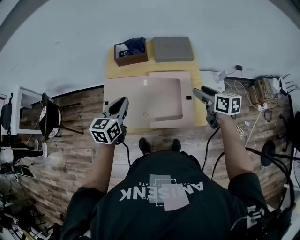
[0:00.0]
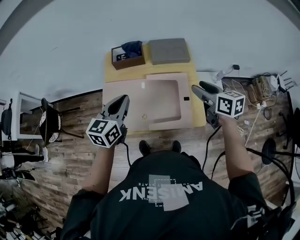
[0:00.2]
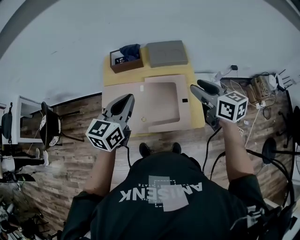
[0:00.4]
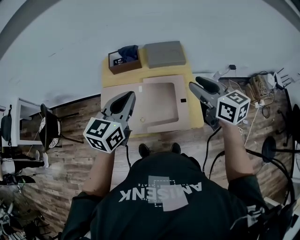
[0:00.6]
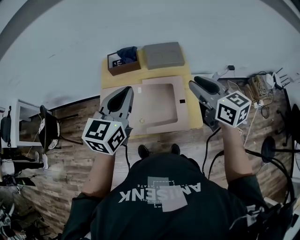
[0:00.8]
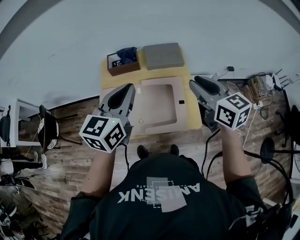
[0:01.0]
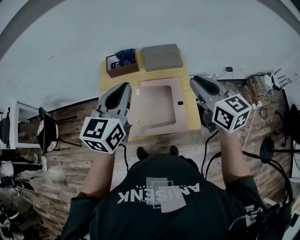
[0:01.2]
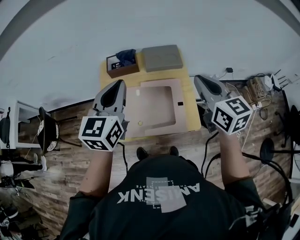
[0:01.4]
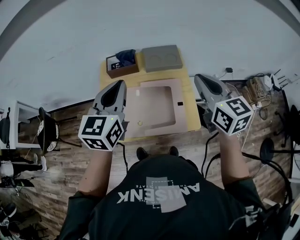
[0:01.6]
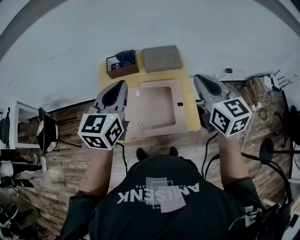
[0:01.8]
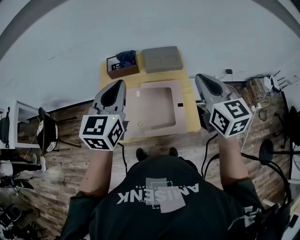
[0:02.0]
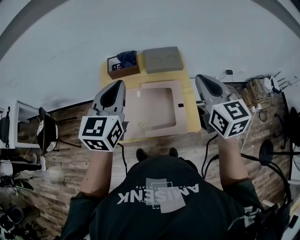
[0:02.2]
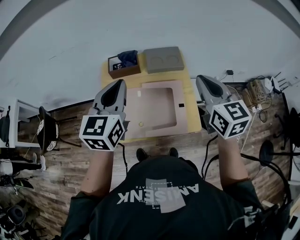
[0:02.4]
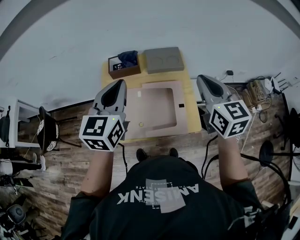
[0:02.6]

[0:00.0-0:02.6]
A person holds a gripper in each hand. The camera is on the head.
0:00.0 to 0:01.2: The right gripper goes some 20 cm upward, changes its angle by about 30 degrees, and closes its fingers, while the left gripper travels upward and to the right by roughly 20 cm.
0:01.2 to 0:02.6: The grippers make only small movements.

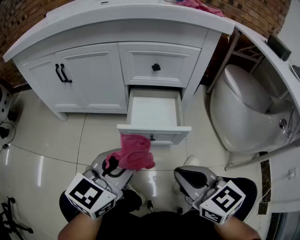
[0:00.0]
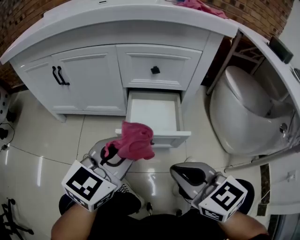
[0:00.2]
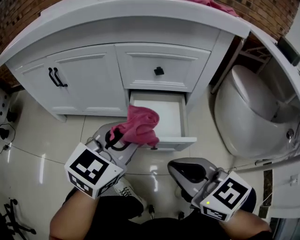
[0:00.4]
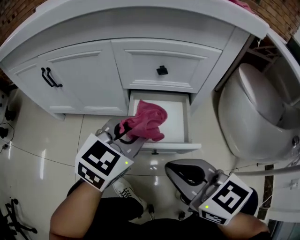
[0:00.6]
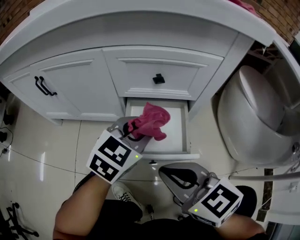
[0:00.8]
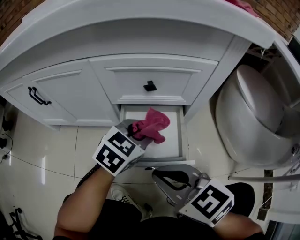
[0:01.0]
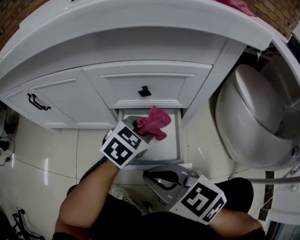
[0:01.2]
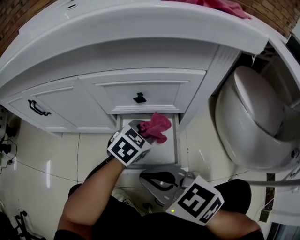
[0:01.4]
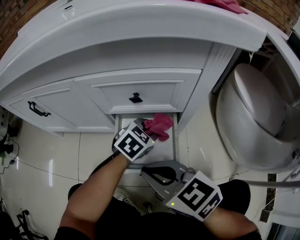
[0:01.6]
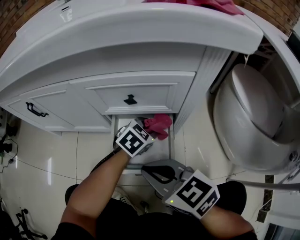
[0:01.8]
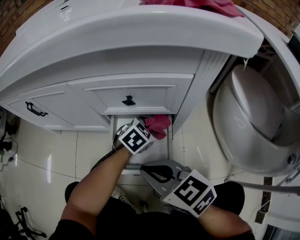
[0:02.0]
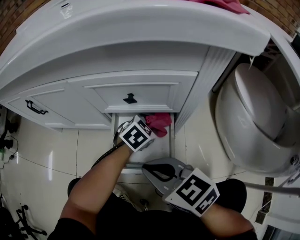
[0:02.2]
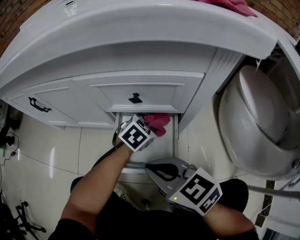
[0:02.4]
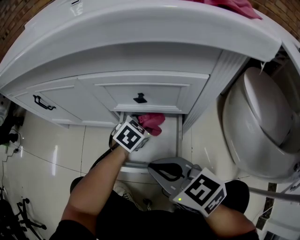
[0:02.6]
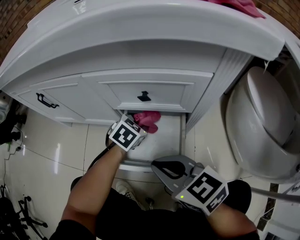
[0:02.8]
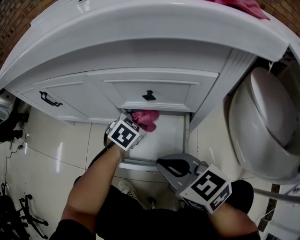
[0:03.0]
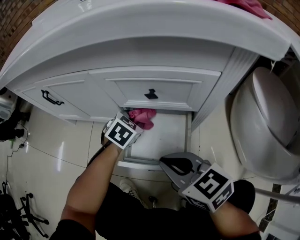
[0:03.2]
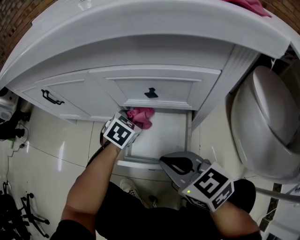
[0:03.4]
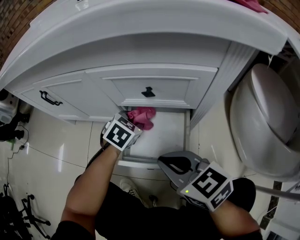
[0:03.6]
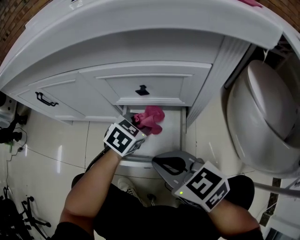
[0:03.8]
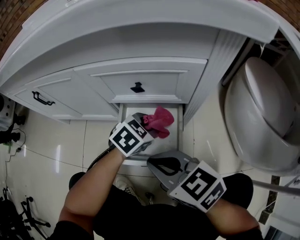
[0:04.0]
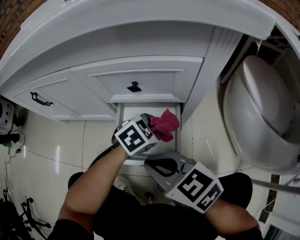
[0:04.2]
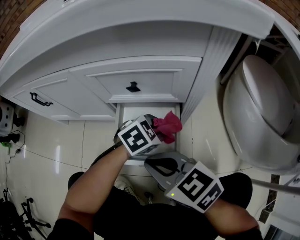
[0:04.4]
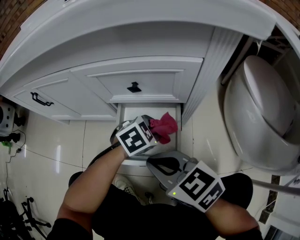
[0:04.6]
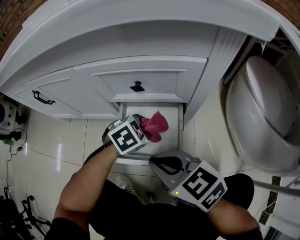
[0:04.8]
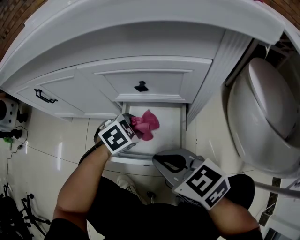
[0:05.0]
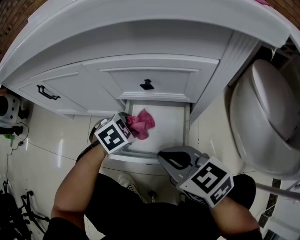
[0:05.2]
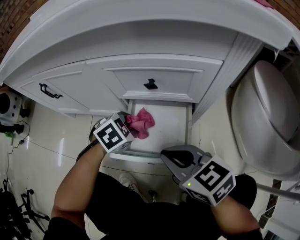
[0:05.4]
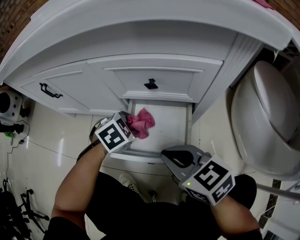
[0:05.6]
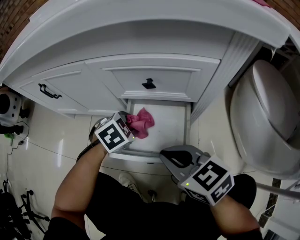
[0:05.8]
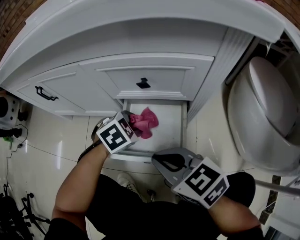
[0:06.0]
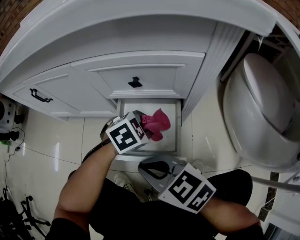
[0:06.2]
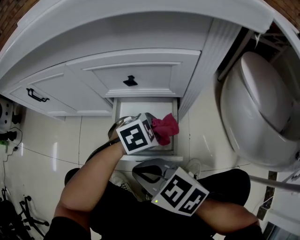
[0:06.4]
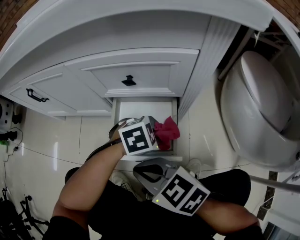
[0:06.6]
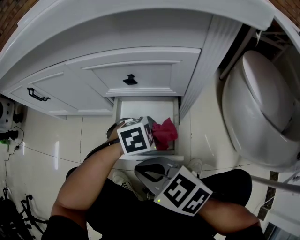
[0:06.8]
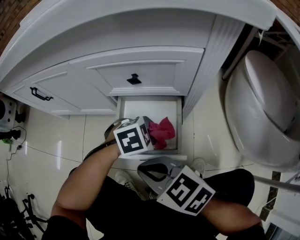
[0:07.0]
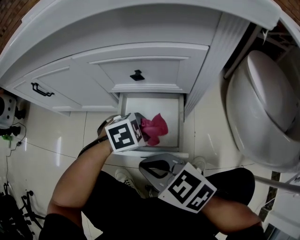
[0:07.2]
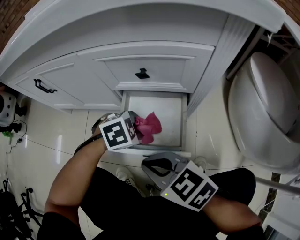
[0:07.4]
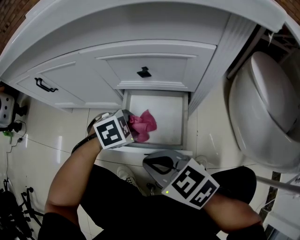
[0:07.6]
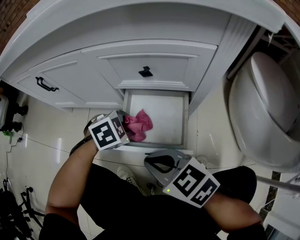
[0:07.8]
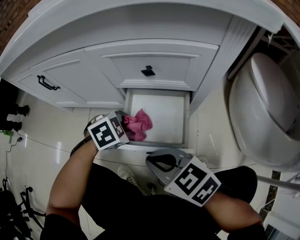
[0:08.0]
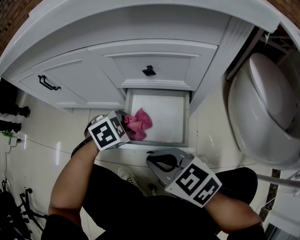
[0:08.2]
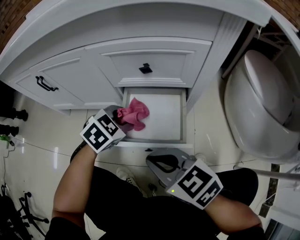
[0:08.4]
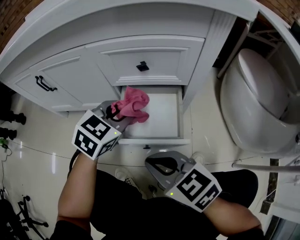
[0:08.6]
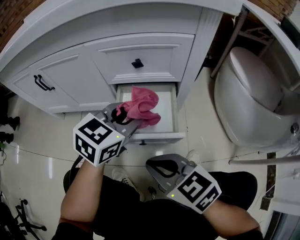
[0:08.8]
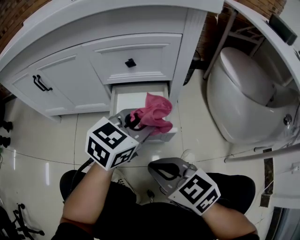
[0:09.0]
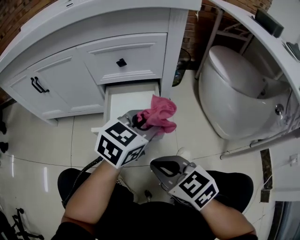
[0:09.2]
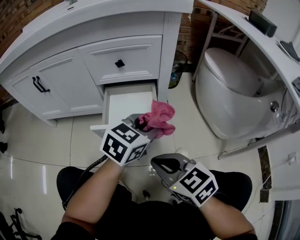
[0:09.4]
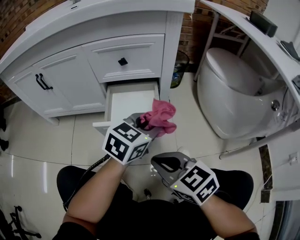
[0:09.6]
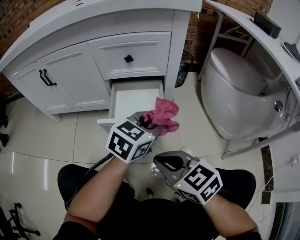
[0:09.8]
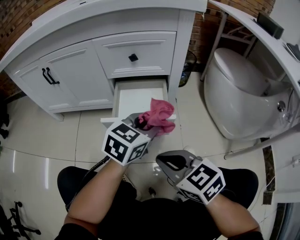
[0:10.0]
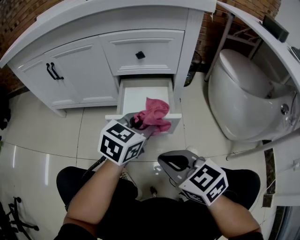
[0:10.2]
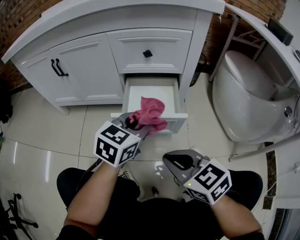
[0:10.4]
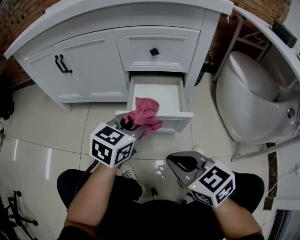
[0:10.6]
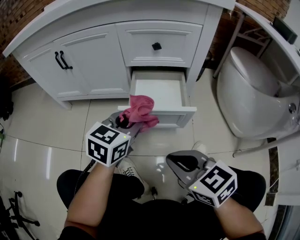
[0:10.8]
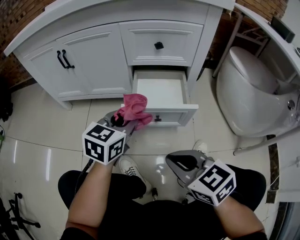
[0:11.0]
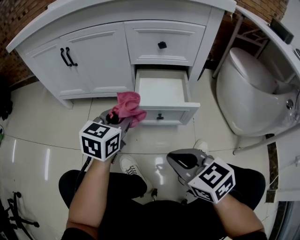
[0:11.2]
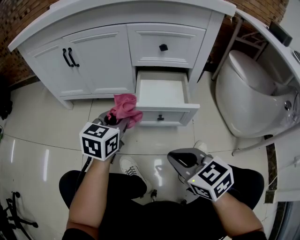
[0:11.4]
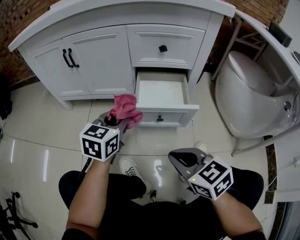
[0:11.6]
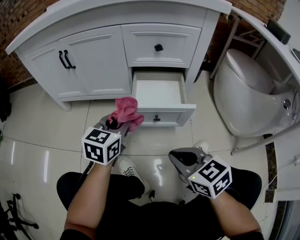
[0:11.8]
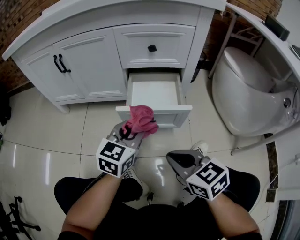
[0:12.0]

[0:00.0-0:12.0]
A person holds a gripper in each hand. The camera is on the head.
0:00.0 to 0:01.6: The left gripper is displaced forward, downward and to the right by some 35 cm, and angles its fingers downward, by approximately 30 degrees. Meanwhile the right gripper moves forward, approximately 20 cm.
0:01.6 to 0:03.0: The left gripper shifts approximately 10 cm to the left.
0:03.0 to 0:04.4: The left gripper ends up some 15 cm from where it was, and changes its angle by approximately 30 degrees.
0:04.4 to 0:06.0: The left gripper moves some 10 cm.
0:06.0 to 0:07.6: The right gripper shifts by roughly 5 cm.
0:07.6 to 0:09.0: The right gripper ends up about 10 cm from where it was. Meanwhile the left gripper travels upward by some 15 cm, and tips its fingers upward by some 40 degrees.
0:09.0 to 0:10.4: The left gripper travels to the left and backward by roughly 10 cm.
0:10.4 to 0:12.0: The left gripper travels to the left by roughly 5 cm.

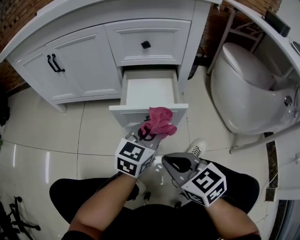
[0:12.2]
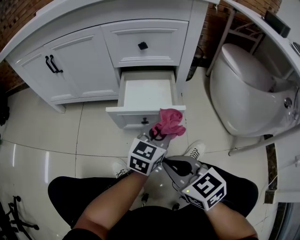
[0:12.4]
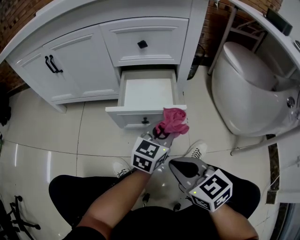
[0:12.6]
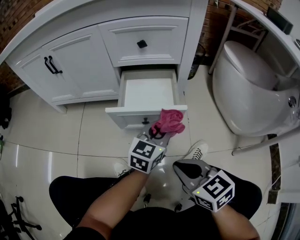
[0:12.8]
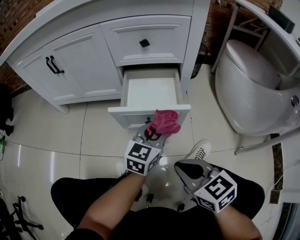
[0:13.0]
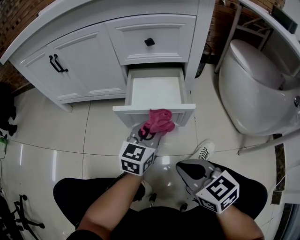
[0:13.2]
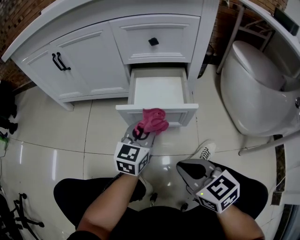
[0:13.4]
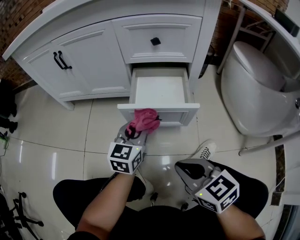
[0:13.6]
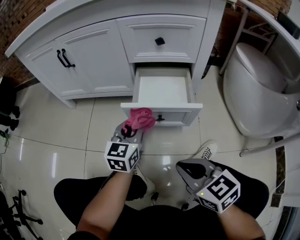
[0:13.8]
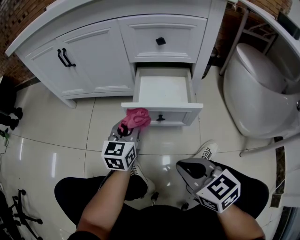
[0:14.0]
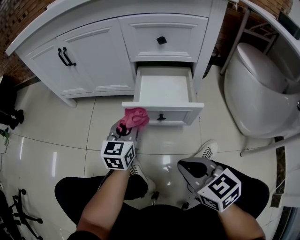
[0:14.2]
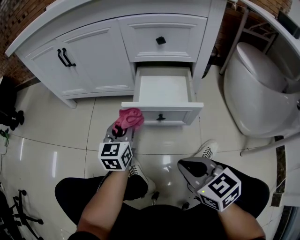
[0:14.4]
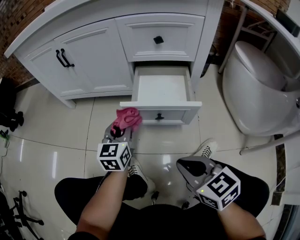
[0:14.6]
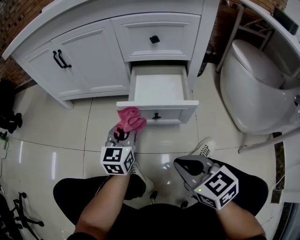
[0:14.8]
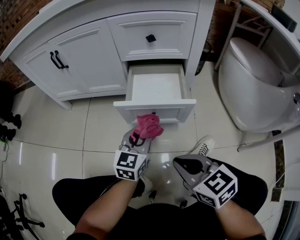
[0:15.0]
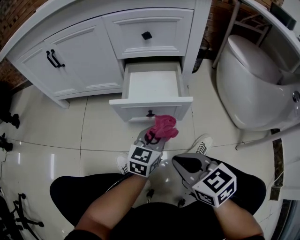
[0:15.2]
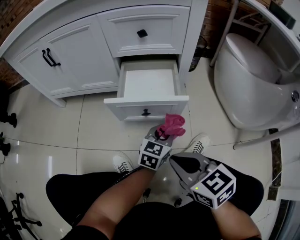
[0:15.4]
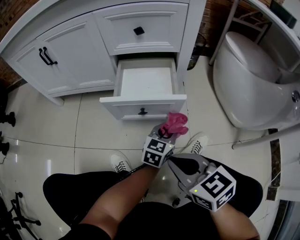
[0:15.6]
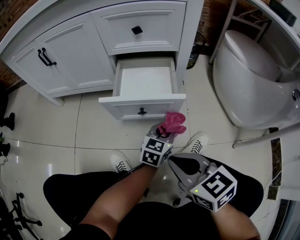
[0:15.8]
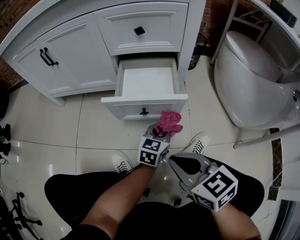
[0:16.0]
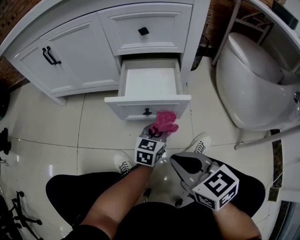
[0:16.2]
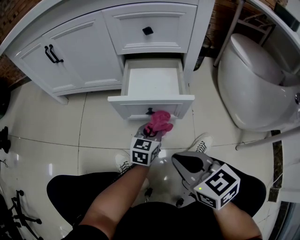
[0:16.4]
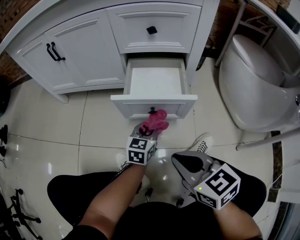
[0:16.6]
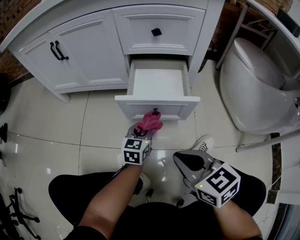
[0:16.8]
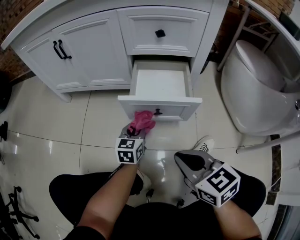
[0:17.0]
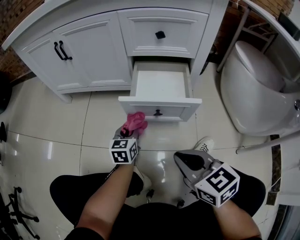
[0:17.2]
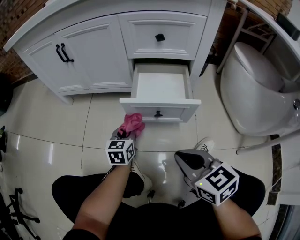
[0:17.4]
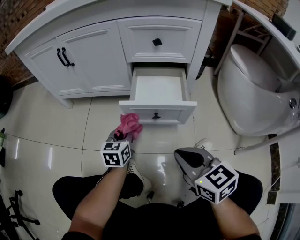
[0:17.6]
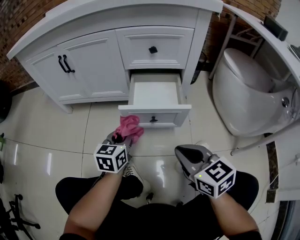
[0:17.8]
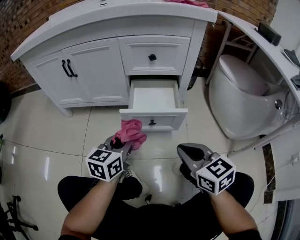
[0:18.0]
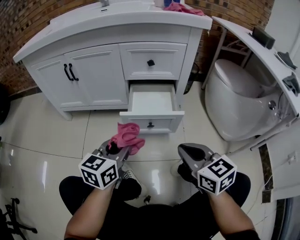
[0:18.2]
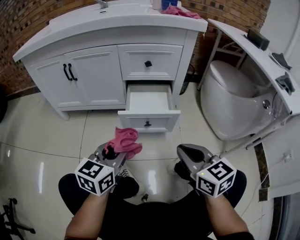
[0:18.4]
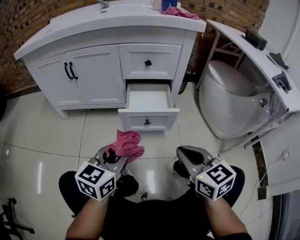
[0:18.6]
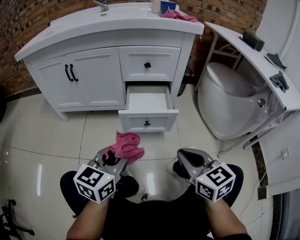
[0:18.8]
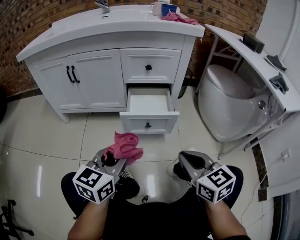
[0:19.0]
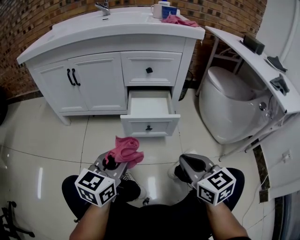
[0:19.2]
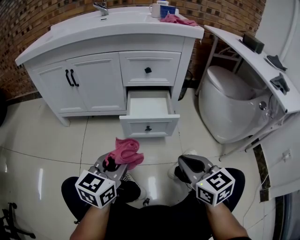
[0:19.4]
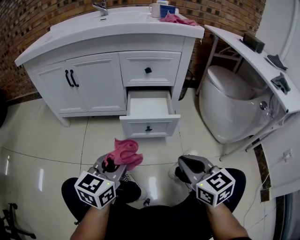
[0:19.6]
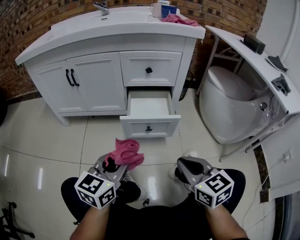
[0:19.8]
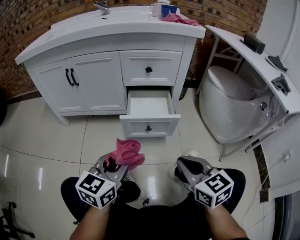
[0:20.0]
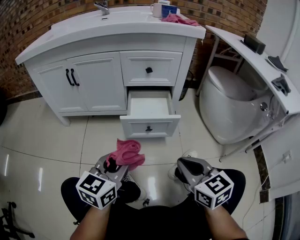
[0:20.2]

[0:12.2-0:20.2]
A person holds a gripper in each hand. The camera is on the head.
0:12.2 to 0:13.8: The left gripper goes some 10 cm to the left, and changes its angle by about 20 degrees.
0:13.8 to 0:15.4: The left gripper goes approximately 20 cm to the right, downward and backward, and rotates approximately 20 degrees.
0:15.4 to 0:17.0: The left gripper goes some 15 cm to the left, and swivels some 20 degrees.
0:17.0 to 0:18.6: The right gripper goes some 10 cm upward, while the left gripper is displaced upward and backward by roughly 30 cm.
0:18.6 to 0:20.2: The grippers make only small movements.

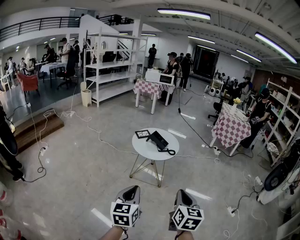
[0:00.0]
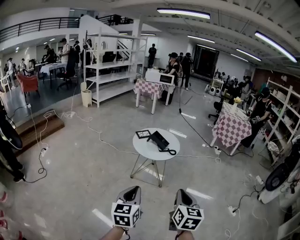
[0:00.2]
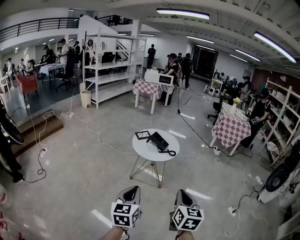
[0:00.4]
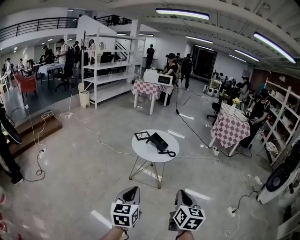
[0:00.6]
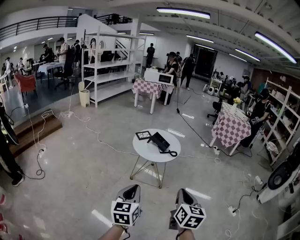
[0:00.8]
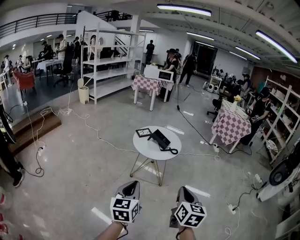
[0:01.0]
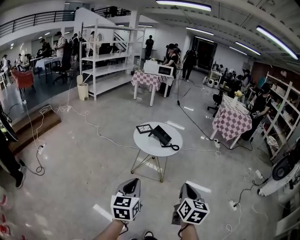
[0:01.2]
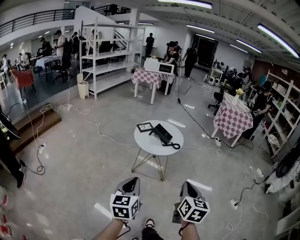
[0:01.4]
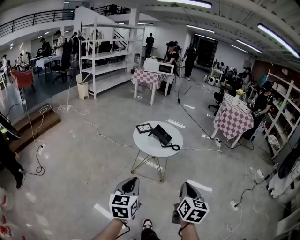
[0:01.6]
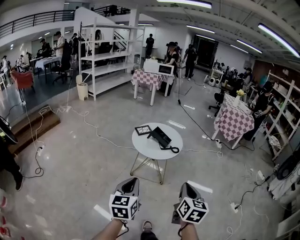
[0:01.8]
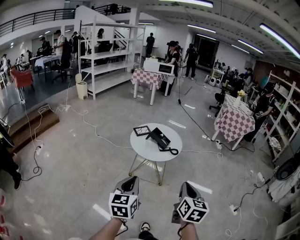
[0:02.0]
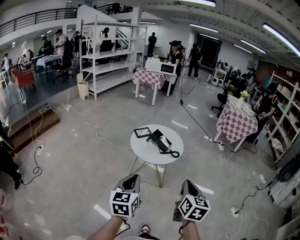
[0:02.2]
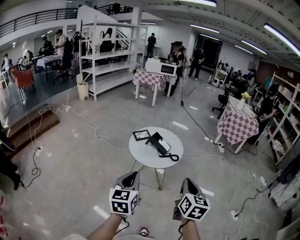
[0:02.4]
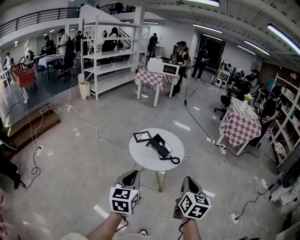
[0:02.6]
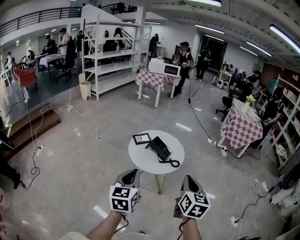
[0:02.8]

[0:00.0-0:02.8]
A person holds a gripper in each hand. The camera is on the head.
0:00.0 to 0:01.4: The two grippers go roughly 5 cm forward.
0:01.4 to 0:02.8: The two grippers go approximately 20 cm forward.
